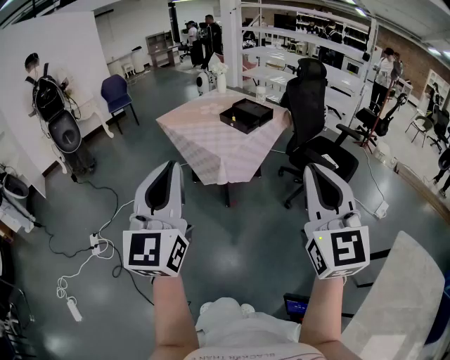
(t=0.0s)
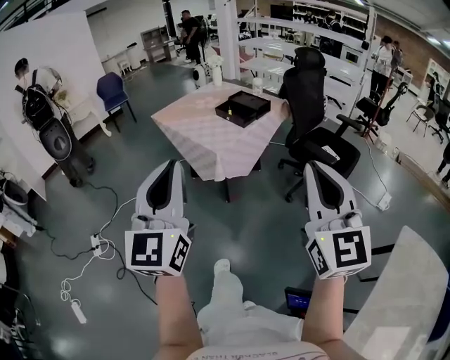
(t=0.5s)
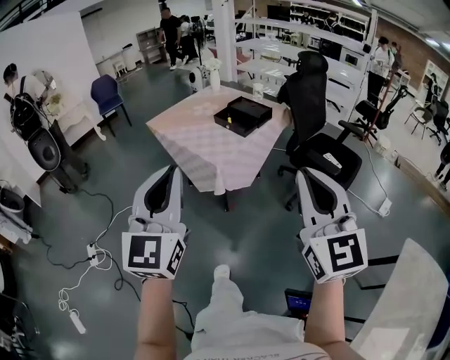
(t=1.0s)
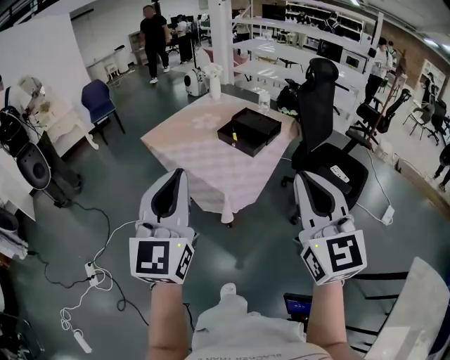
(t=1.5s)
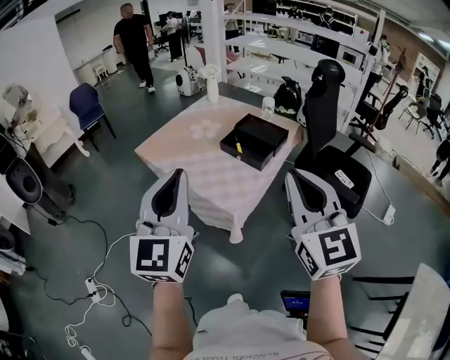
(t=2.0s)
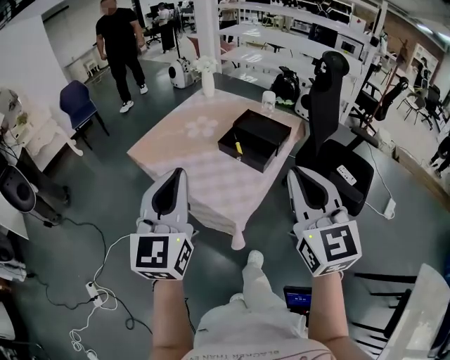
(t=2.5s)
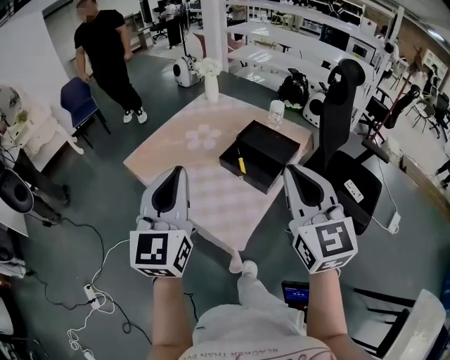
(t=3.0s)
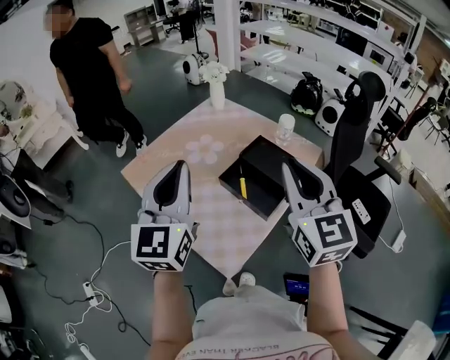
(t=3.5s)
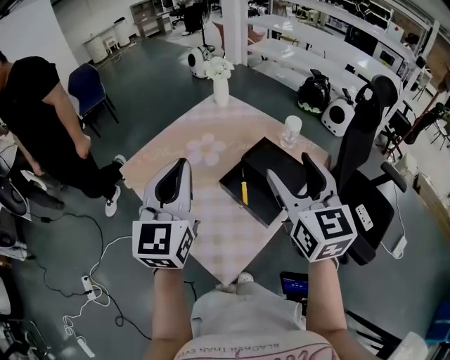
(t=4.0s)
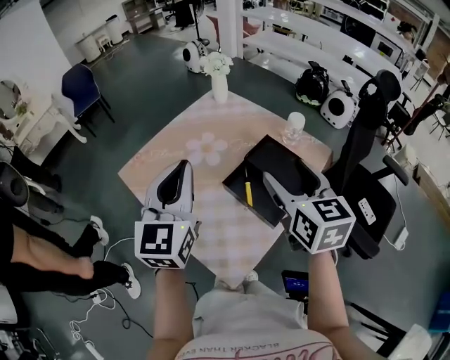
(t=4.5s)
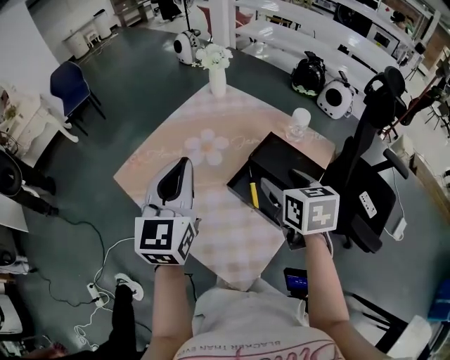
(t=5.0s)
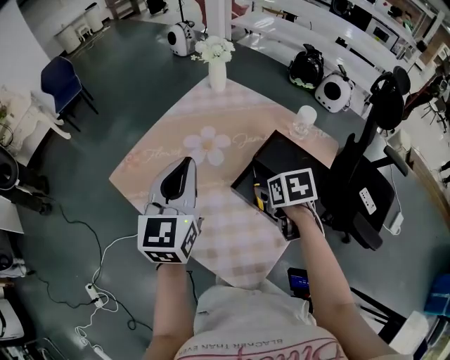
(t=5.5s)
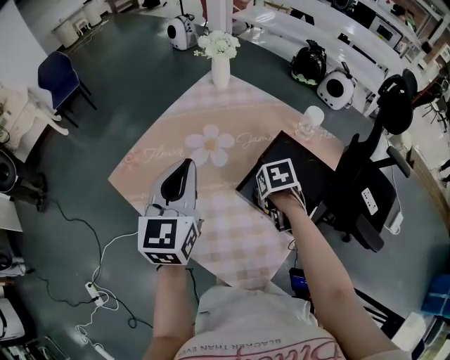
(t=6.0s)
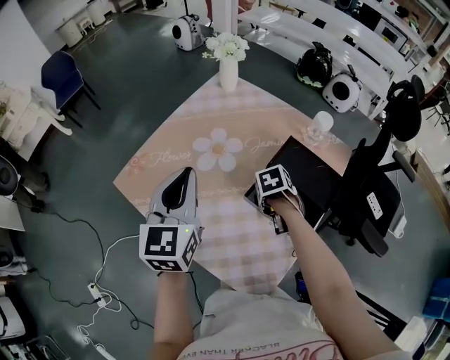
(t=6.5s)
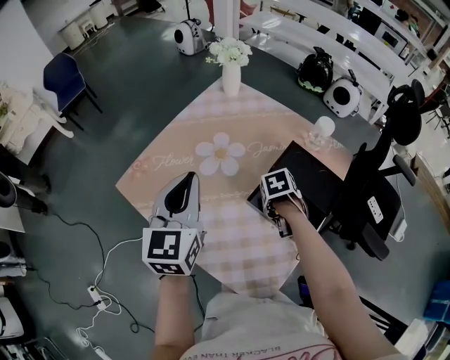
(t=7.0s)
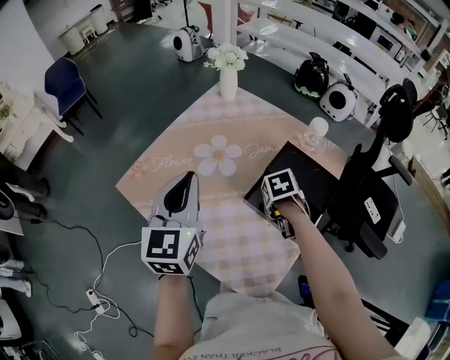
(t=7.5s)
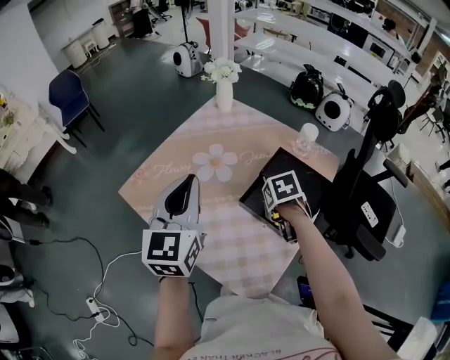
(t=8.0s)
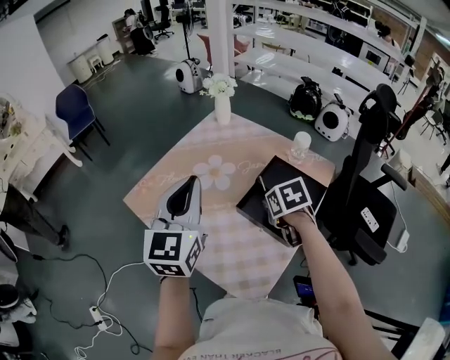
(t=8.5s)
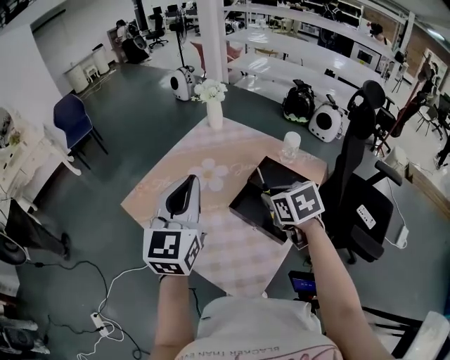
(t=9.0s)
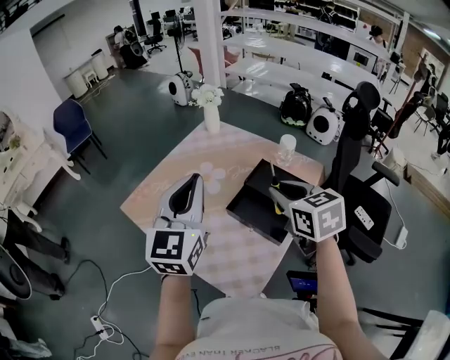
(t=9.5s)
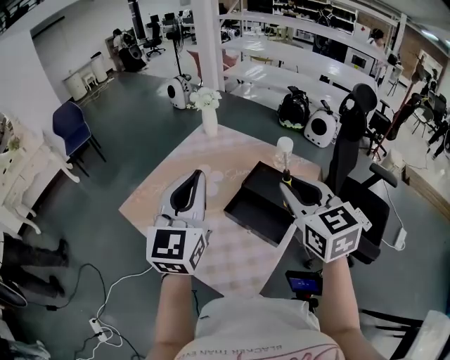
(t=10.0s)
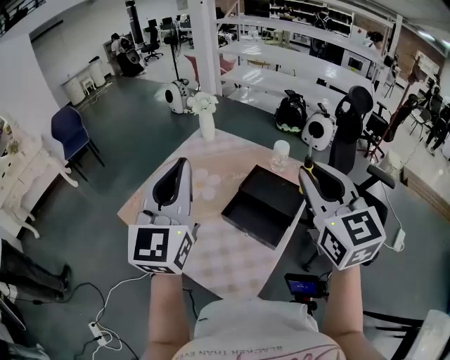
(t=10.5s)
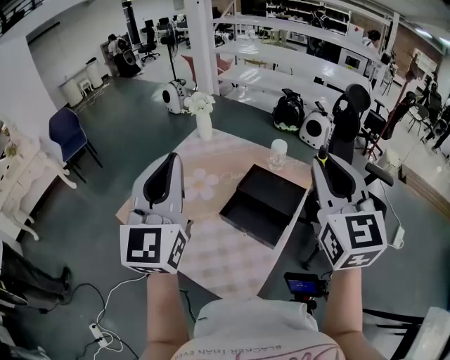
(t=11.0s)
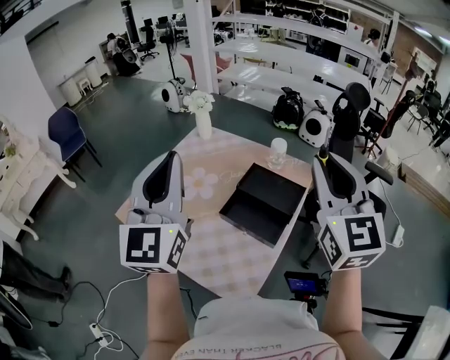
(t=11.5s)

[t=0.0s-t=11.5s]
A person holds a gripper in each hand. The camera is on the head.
t=0.0s to t=2.0s: The grippers both shift forward by approximately 40 cm.
t=2.0s to t=4.0s: Both grippers travel together forward, approximately 35 cm. The right gripper opens up.
t=4.0s to t=6.0s: The left gripper goes about 15 cm forward and downward; the right gripper heads downward, covering some 30 cm, and points its fingers roughly 70 degrees further downward.
t=6.0s to t=7.5s: The right gripper closes.
t=7.5s to t=9.5s: The left gripper heads upward, covering roughly 10 cm. Meanwhile the right gripper heads upward, covering some 25 cm, and points its fingers some 50 degrees further upward.
t=9.5s to t=11.5s: The left gripper goes approximately 10 cm upward; the right gripper moves upward and to the right, approximately 20 cm, and tips its fingers upward by about 30 degrees.

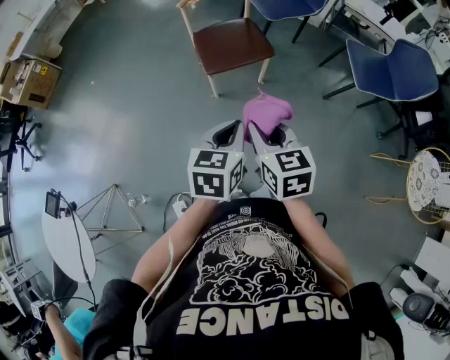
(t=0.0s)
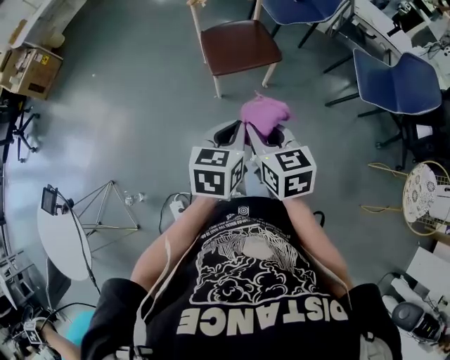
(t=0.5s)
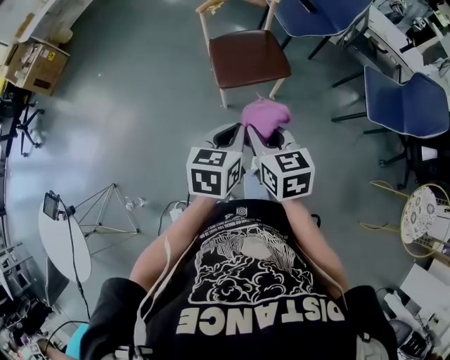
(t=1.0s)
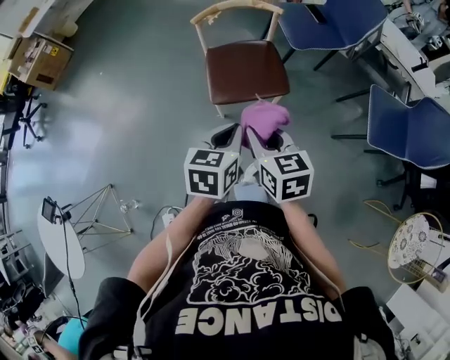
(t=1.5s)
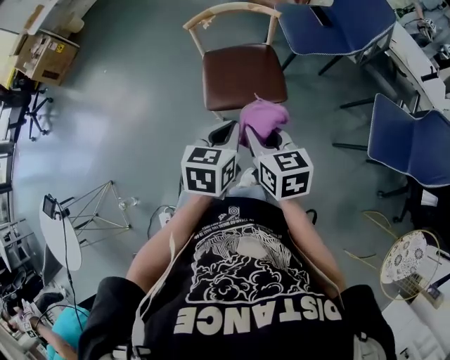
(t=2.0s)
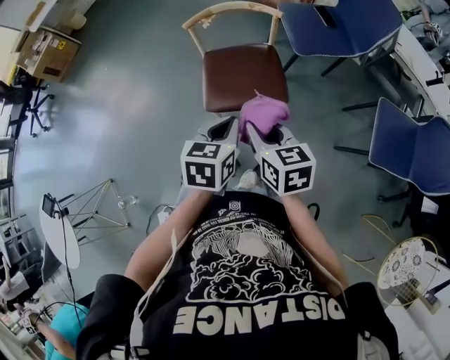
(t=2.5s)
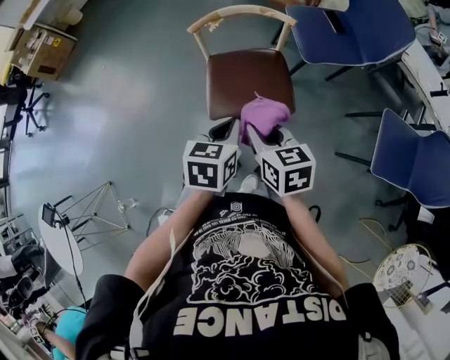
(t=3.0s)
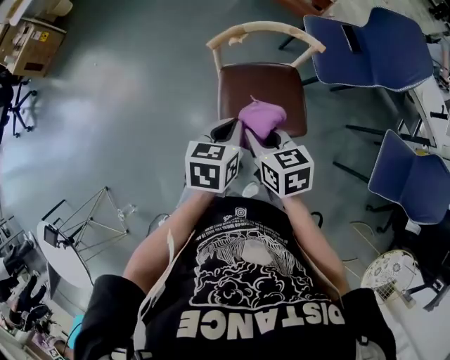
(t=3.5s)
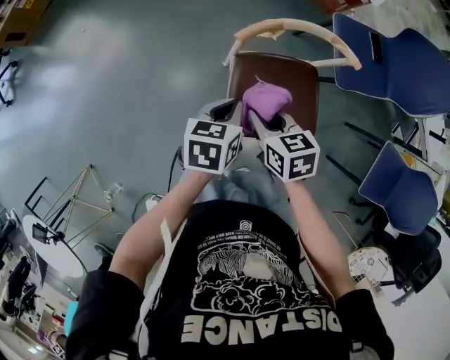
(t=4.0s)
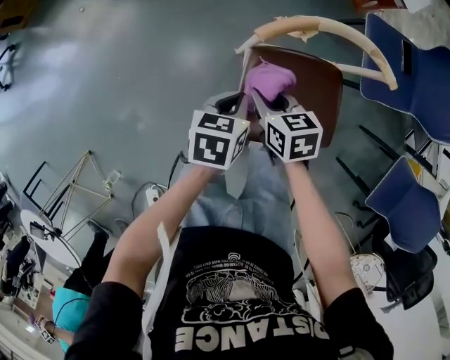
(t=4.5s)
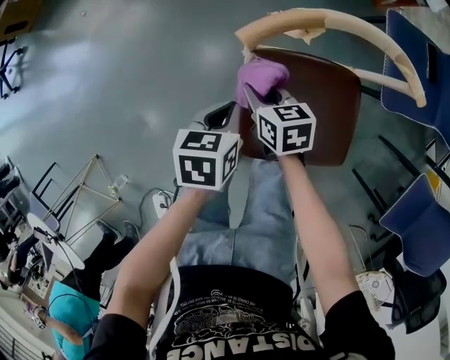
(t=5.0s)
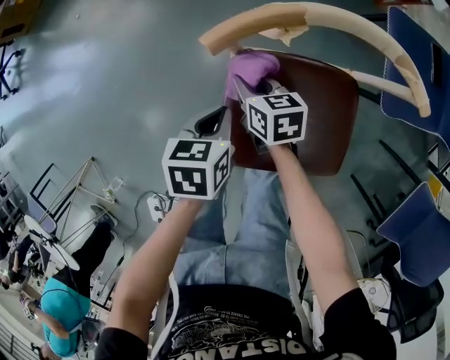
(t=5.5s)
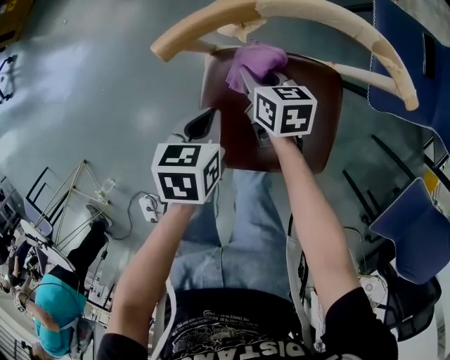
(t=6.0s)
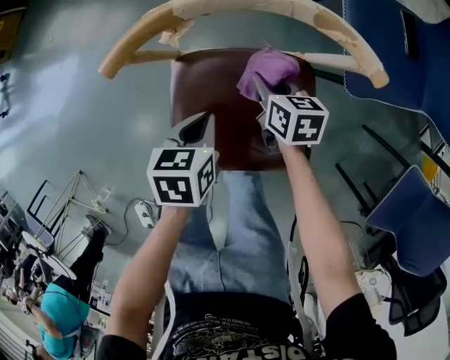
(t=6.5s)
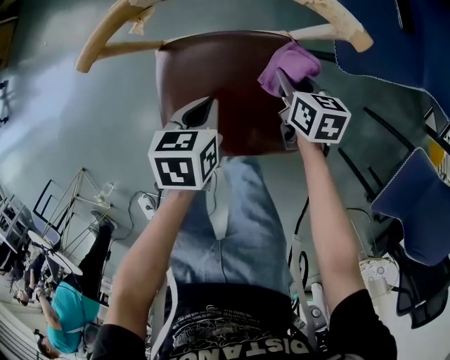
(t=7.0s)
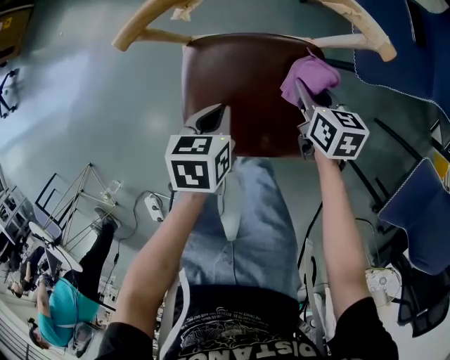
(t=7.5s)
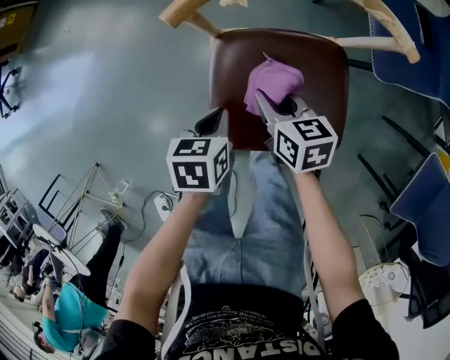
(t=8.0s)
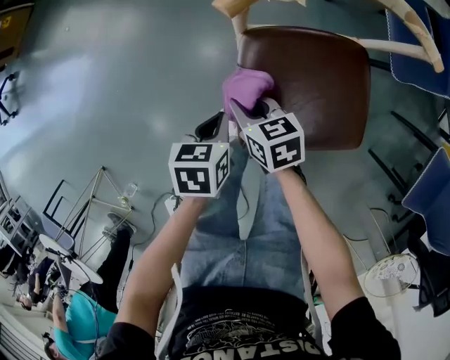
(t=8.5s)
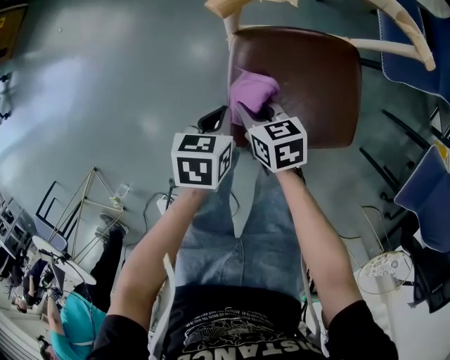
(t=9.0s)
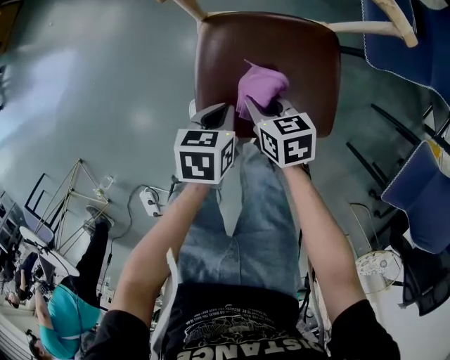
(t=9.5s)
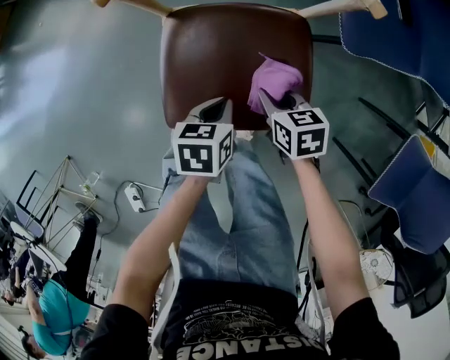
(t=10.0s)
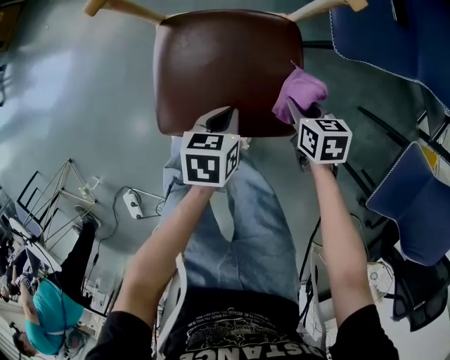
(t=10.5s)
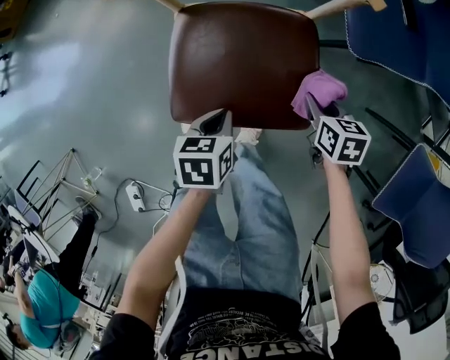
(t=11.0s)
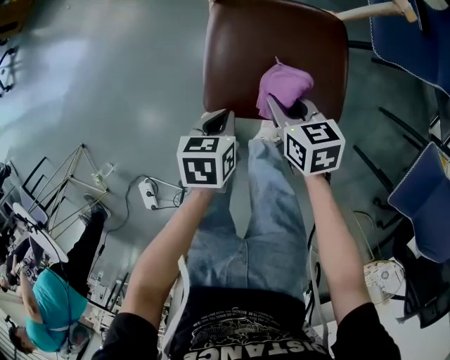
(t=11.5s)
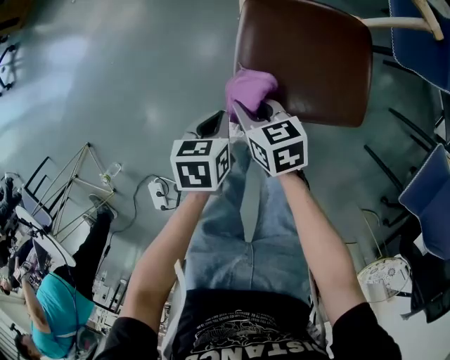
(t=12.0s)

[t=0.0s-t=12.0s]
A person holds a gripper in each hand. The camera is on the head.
t=0.0s to t=2.0s: Both grippers move forward, about 25 cm.
t=2.0s to t=4.0s: The two grippers go some 35 cm forward, to the left and downward. The right gripper turns by roughly 20 degrees.
t=4.0s to t=6.0s: The left gripper travels downward by some 20 cm, while the right gripper travels downward and forward by about 30 cm.
t=6.0s to t=8.0s: The left gripper goes roughly 5 cm backward, and reaches roughly 10 cm to the right, then returns. Meanwhile the right gripper shifts roughly 10 cm backward, and goes to the right and returns, some 20 cm each way.
t=8.0s to t=10.0s: Both grippers travel together to the right and backward, roughly 15 cm.
t=10.0s to t=12.0s: Both grippers move to the left, some 20 cm.

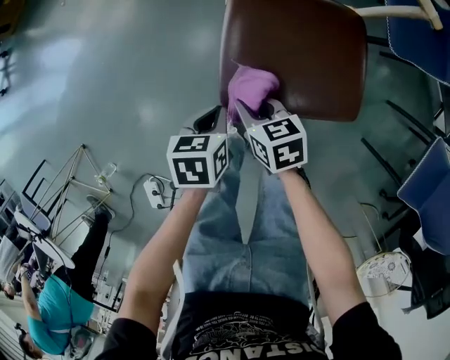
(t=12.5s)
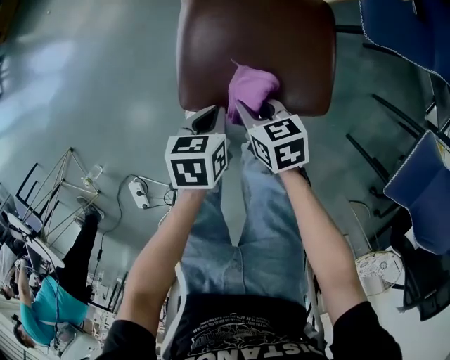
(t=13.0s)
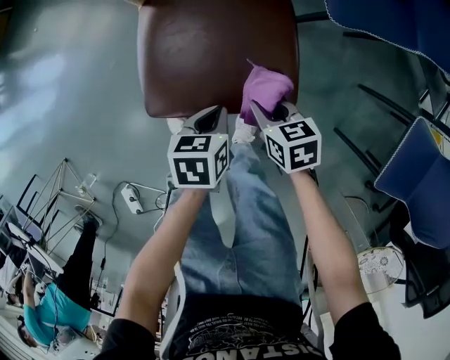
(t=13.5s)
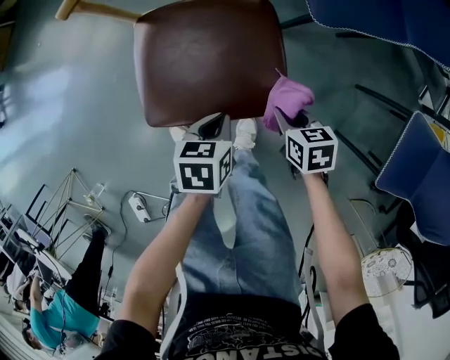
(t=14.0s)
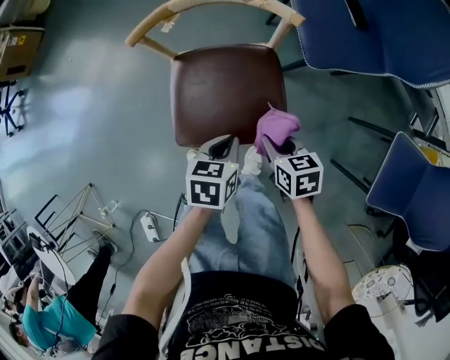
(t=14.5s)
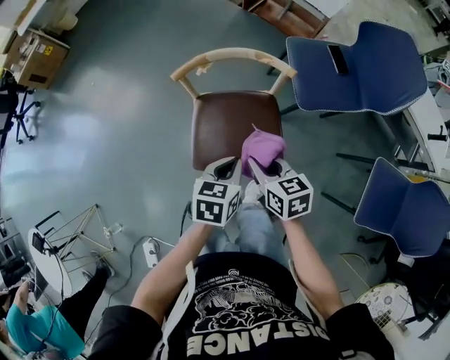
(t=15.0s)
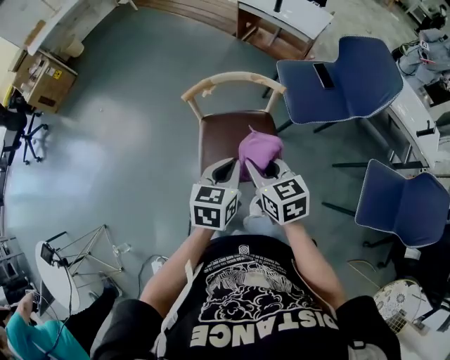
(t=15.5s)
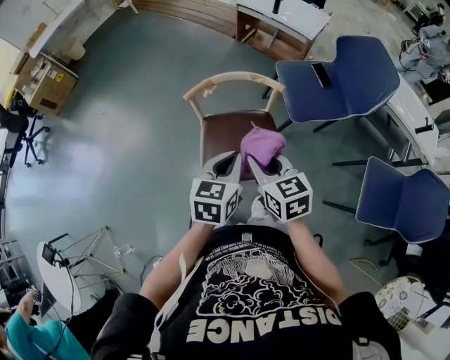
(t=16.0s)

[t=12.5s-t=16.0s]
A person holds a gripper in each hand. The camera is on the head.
t=12.5s to t=14.5s: Both grippers travel together to the right and upward, some 25 cm.
t=14.5s to t=16.0s: The grippers both shift upward by about 25 cm. The right gripper rotates roughly 30 degrees. The left gripper turns by some 30 degrees.
